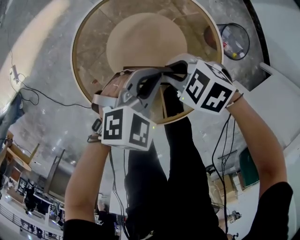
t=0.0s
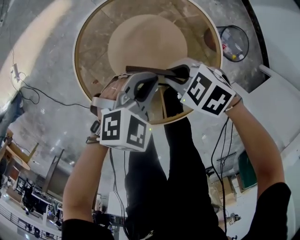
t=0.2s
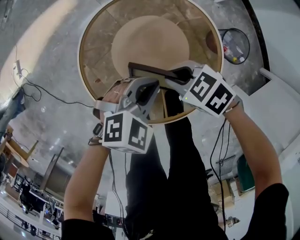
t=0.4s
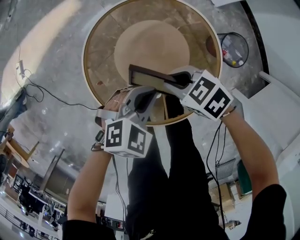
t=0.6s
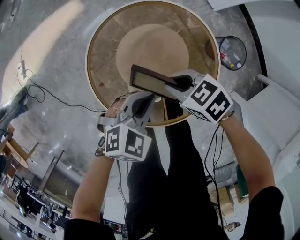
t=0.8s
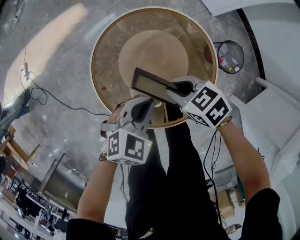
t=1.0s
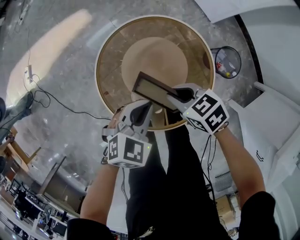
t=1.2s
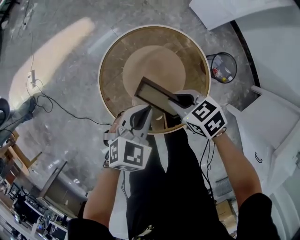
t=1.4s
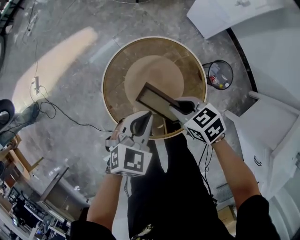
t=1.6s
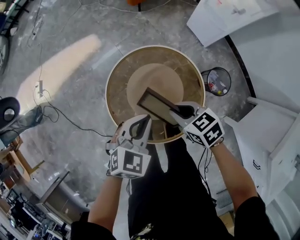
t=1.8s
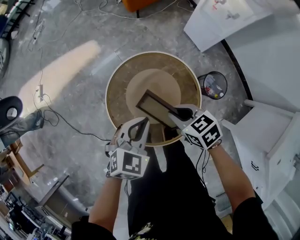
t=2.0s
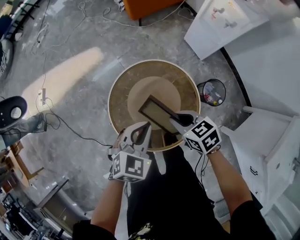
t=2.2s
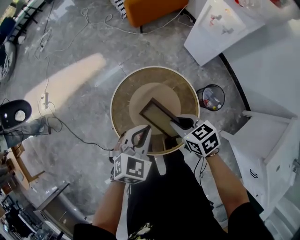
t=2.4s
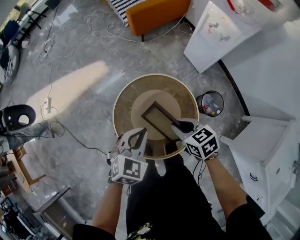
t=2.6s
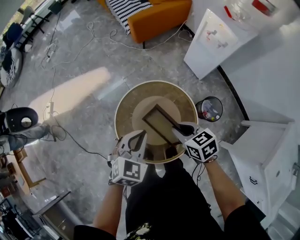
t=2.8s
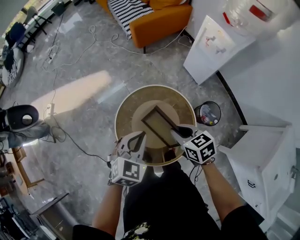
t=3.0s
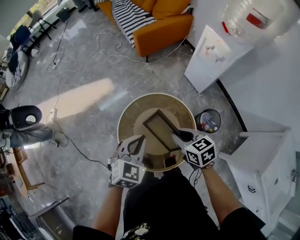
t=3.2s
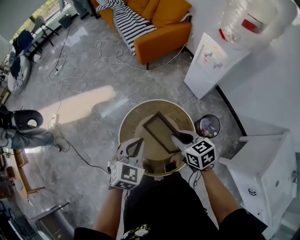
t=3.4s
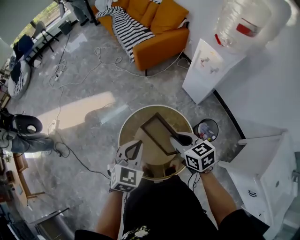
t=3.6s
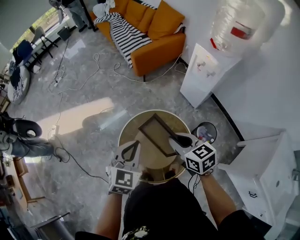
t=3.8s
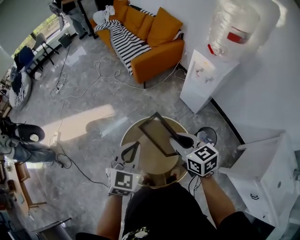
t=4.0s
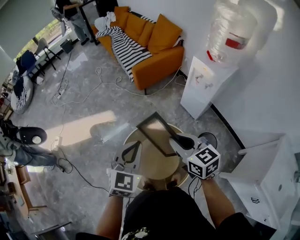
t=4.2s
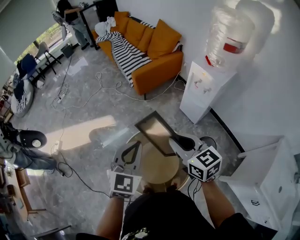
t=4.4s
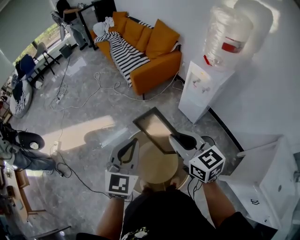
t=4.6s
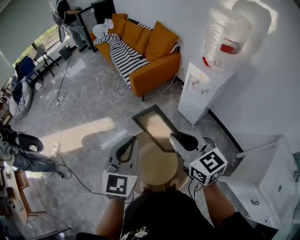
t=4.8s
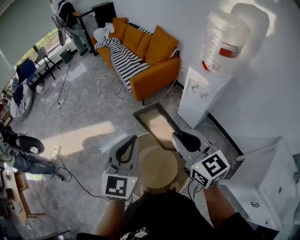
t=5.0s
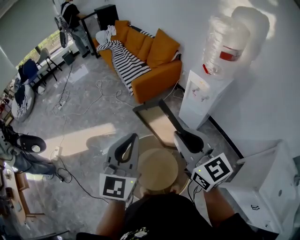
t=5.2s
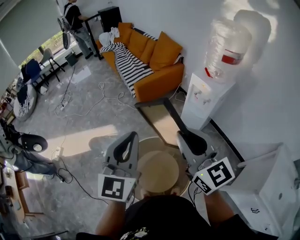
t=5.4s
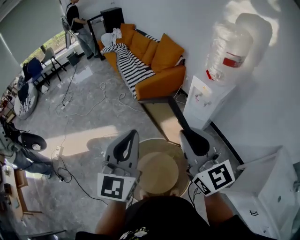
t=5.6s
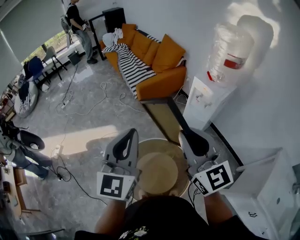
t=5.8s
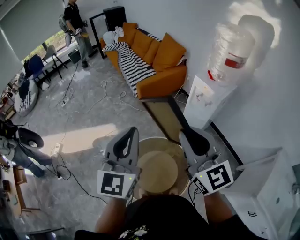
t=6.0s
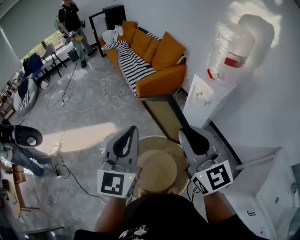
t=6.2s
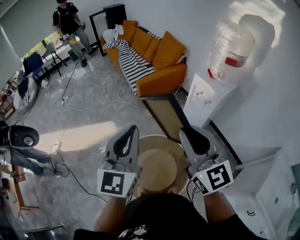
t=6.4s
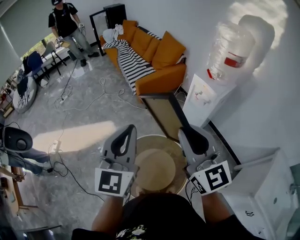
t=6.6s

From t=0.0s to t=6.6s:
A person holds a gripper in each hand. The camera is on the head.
From t=0.0s to t=1.6s: Both grippers travel together upward, about 20 cm. The left gripper swivels approximately 20 degrees. The right gripper swivels approximately 30 degrees.
From t=1.6s to t=3.2s: Both grippers travel together upward, roughly 20 cm.
From t=3.2s to t=5.0s: Both grippers travel together upward, about 25 cm. The left gripper tips its fingers upward by some 30 degrees; the right gripper tilts its fingers some 30 degrees upward.
From t=5.0s to t=6.6s: Both grippers move upward, approximately 5 cm.

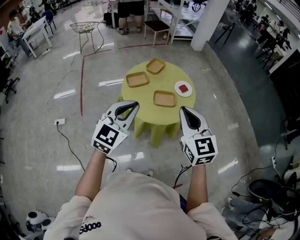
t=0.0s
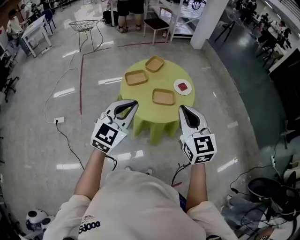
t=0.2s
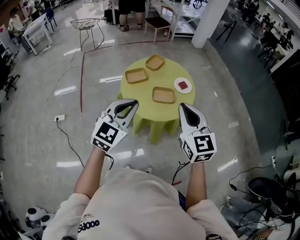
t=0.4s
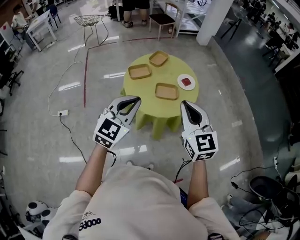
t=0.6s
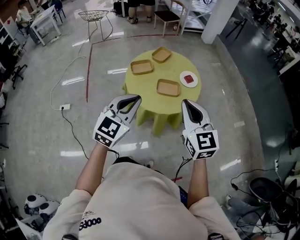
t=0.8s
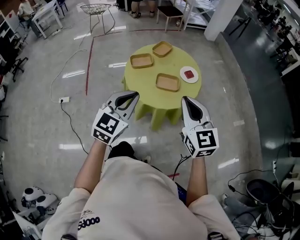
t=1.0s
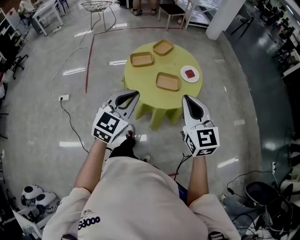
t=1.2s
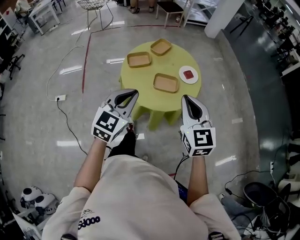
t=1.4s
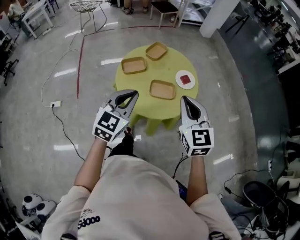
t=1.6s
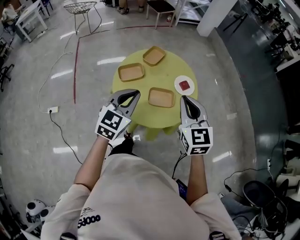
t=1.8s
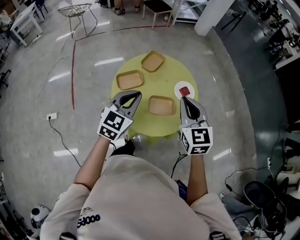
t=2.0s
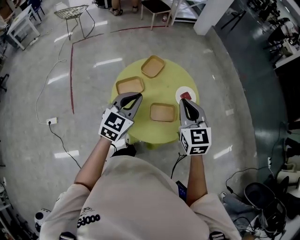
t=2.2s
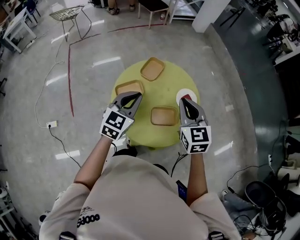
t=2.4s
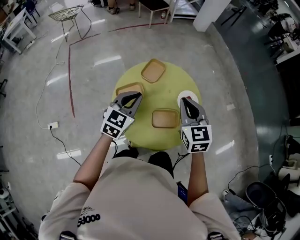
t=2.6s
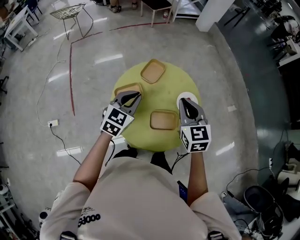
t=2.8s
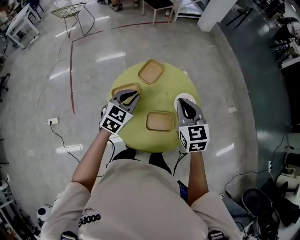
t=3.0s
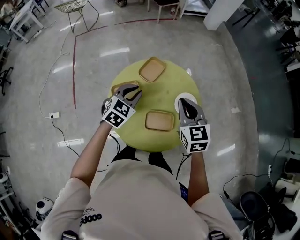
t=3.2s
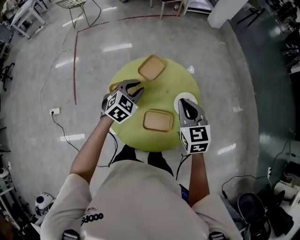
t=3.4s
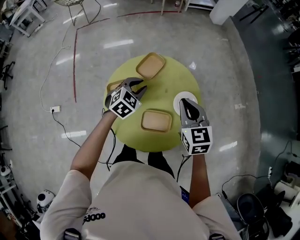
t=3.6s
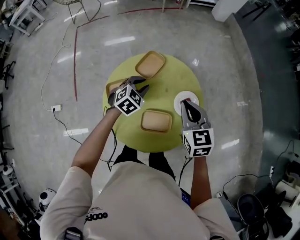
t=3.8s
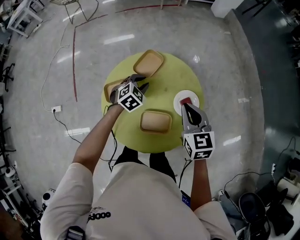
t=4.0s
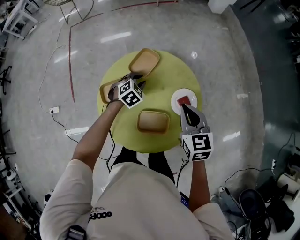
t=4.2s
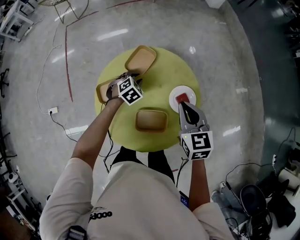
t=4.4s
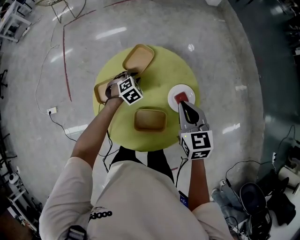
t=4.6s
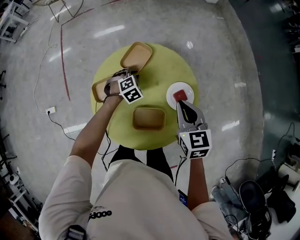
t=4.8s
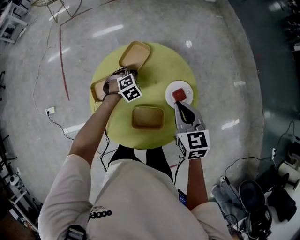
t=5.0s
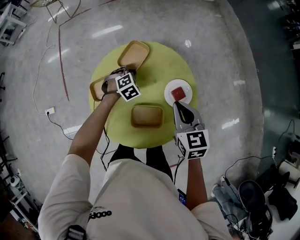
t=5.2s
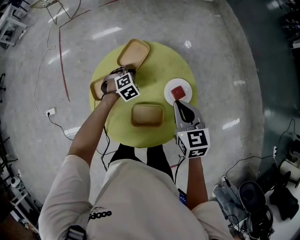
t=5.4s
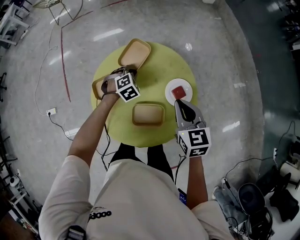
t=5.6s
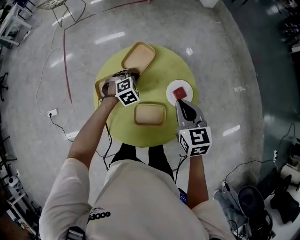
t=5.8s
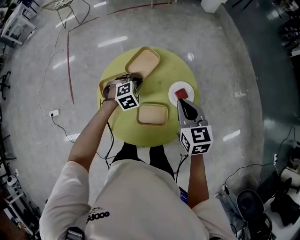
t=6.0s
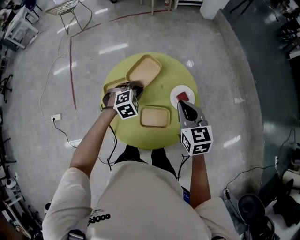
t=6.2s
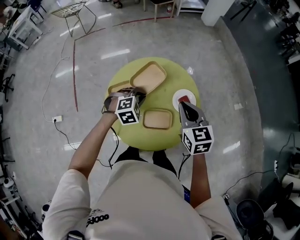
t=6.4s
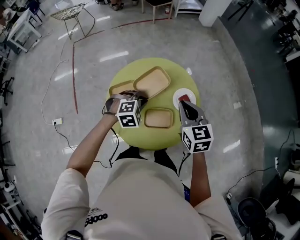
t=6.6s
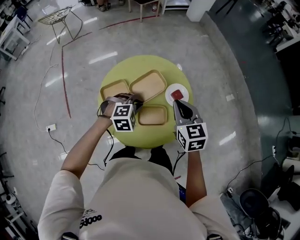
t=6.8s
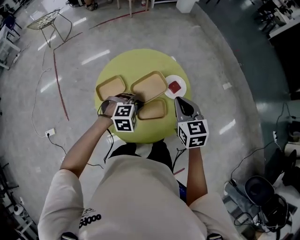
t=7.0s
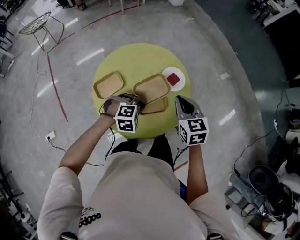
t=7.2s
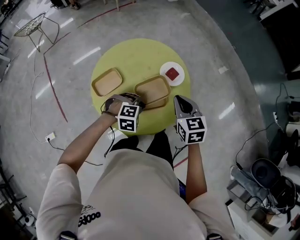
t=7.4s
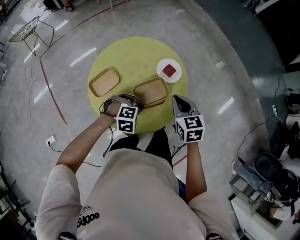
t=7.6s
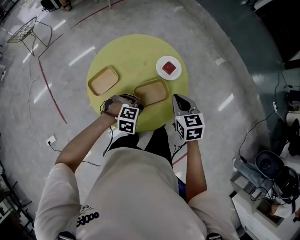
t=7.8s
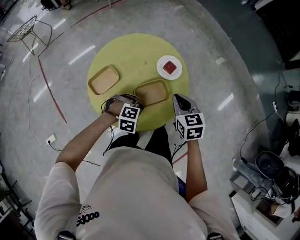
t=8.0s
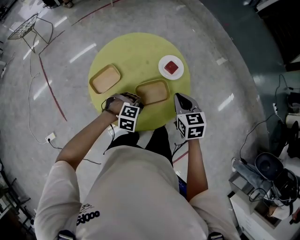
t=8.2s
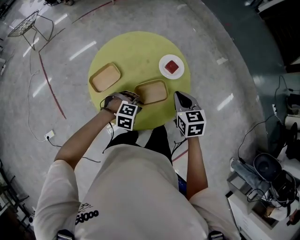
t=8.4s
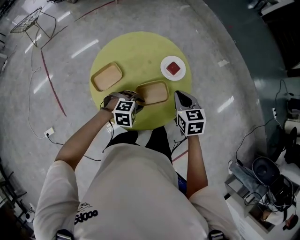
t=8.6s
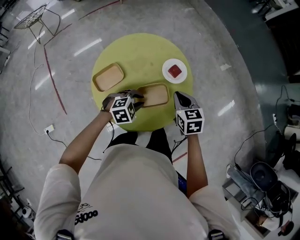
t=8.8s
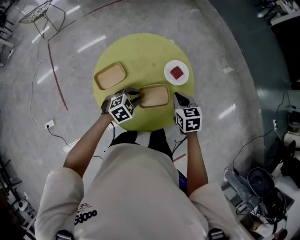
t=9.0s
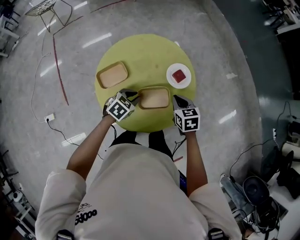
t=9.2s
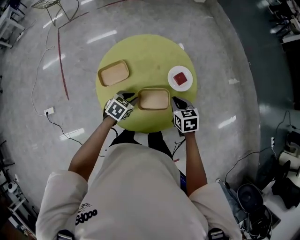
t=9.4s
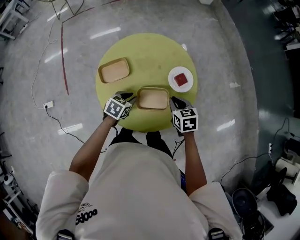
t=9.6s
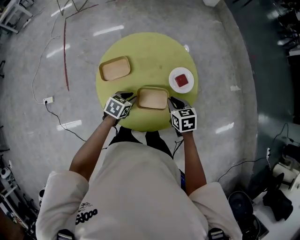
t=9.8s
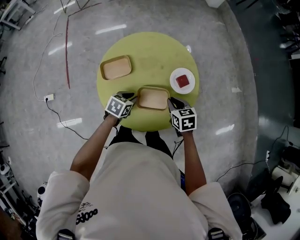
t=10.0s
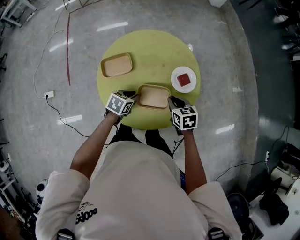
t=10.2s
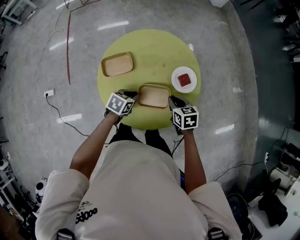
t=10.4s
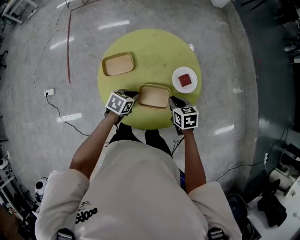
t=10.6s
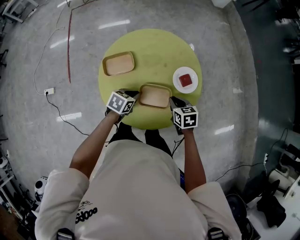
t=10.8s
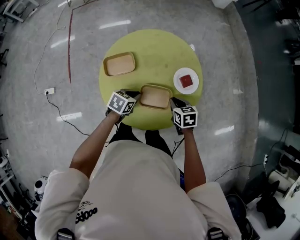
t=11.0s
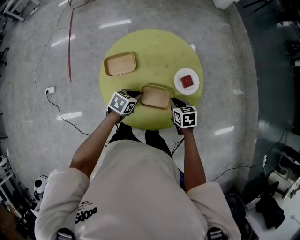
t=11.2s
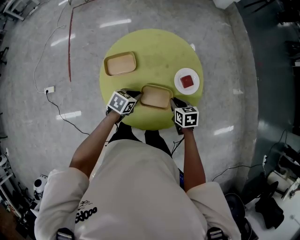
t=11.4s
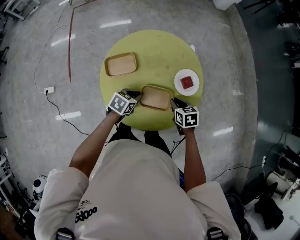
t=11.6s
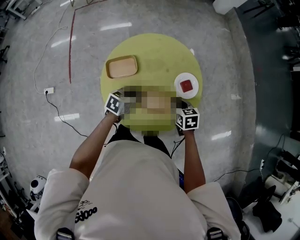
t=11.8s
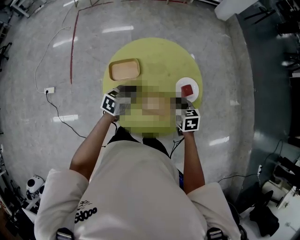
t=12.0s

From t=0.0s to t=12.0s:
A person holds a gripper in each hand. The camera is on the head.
From t=0.0s to t=1.6s: Both grippers move forward and downward, roughly 10 cm.
From t=1.6s to t=3.0s: The grippers both shift forward by approximately 25 cm.
From t=3.0s to t=4.4s: The left gripper is displaced downward and forward by approximately 25 cm, and angles its fingers downward, by roughly 30 degrees. Meanwhile the right gripper travels downward and to the right by about 10 cm.
From t=4.4s to t=6.0s: The left gripper is displaced upward and backward by roughly 10 cm.
From t=6.0s to t=7.6s: The left gripper reaches some 5 cm upward, then returns, and turns by approximately 50 degrees. Meanwhile the right gripper shifts by some 10 cm.
From t=7.6s to t=9.0s: The right gripper heads downward, covering approximately 5 cm; the left gripper shifts by approximately 5 cm, and changes its angle by approximately 40 degrees.
From t=9.0s to t=10.4s: The right gripper heads downward, covering roughly 5 cm; the left gripper changes place by approximately 5 cm, and rotates around the line of its fingers by approximately 50 degrees, counterclockwise from behind.
From t=10.4s to t=12.0s: The left gripper is displaced upward by roughly 5 cm. The right gripper shifts by some 5 cm.

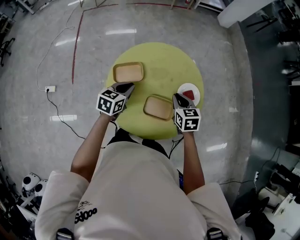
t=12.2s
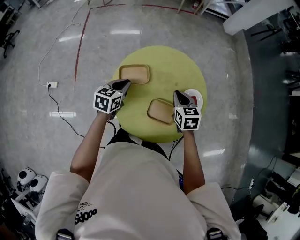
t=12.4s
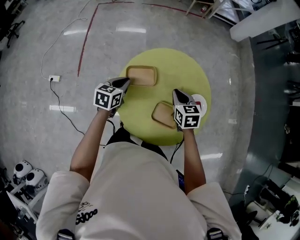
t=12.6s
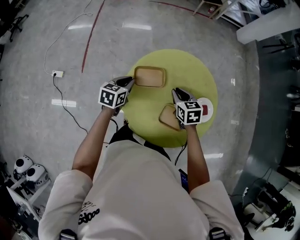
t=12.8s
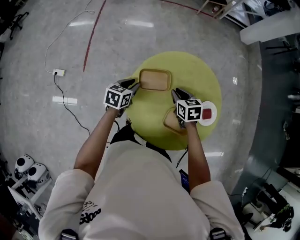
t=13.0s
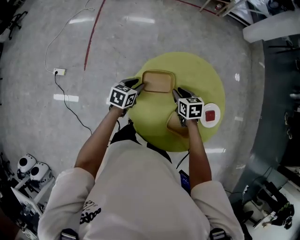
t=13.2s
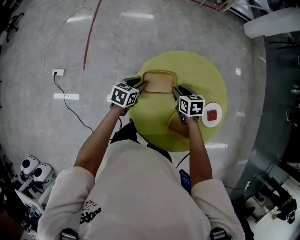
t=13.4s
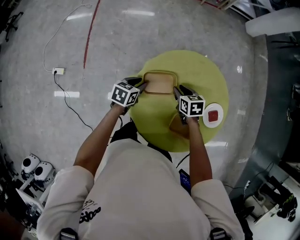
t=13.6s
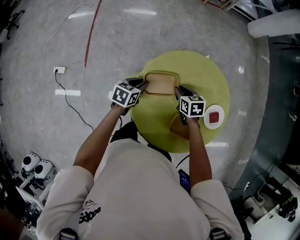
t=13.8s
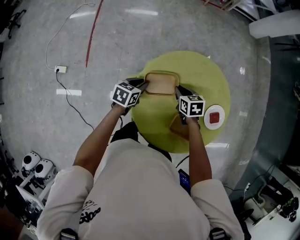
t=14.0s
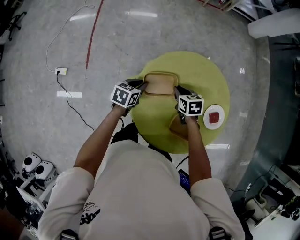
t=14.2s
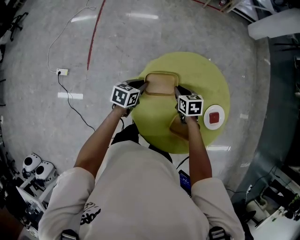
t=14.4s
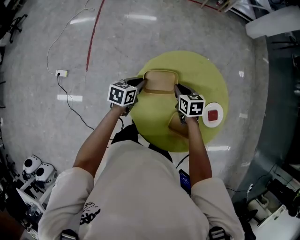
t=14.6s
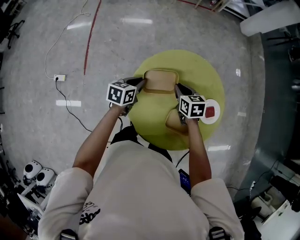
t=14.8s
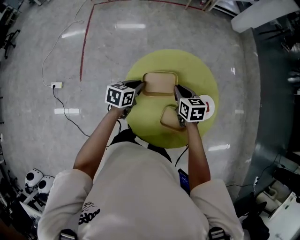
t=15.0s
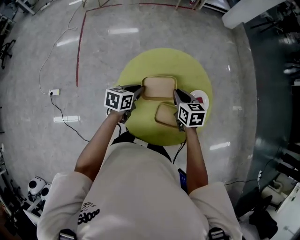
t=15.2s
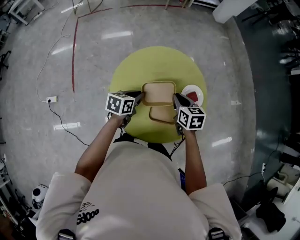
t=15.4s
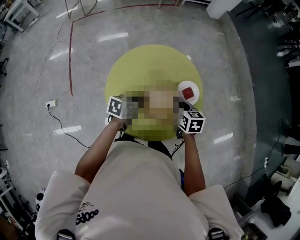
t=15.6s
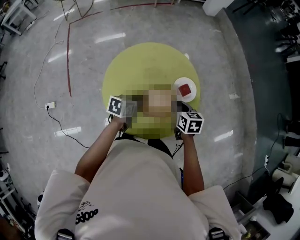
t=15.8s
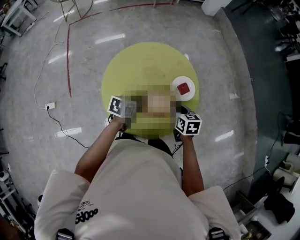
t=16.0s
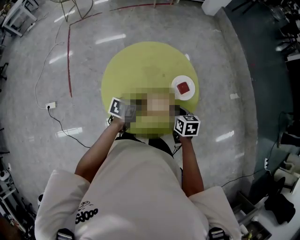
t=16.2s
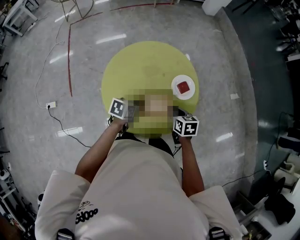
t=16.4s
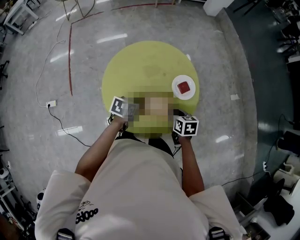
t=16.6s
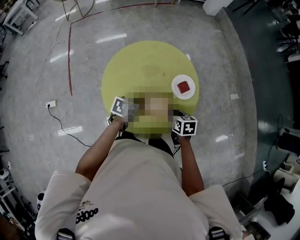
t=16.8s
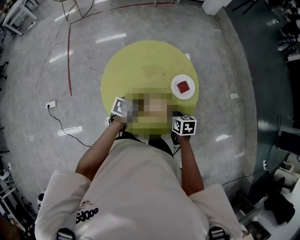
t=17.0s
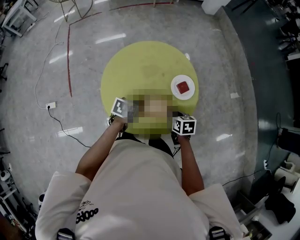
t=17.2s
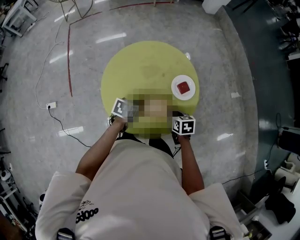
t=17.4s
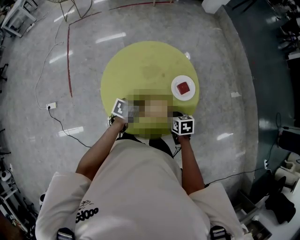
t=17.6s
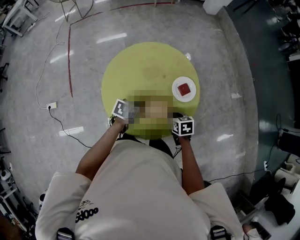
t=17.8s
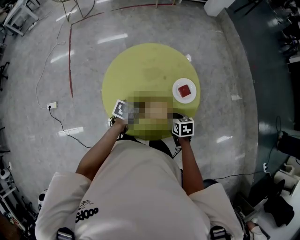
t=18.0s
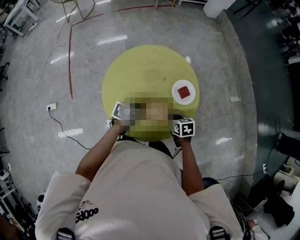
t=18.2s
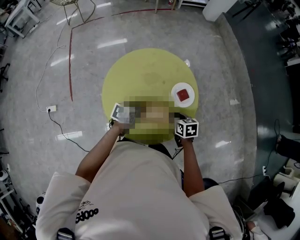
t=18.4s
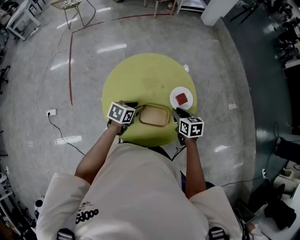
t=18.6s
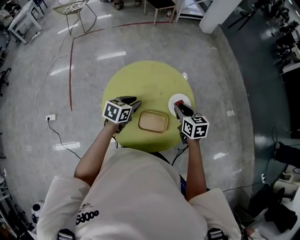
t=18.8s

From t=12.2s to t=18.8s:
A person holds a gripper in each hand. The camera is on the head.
From t=12.2s to t=13.8s: The right gripper heads to the left, forward and downward, covering some 20 cm, while the left gripper is displaced to the left, downward and forward by approximately 15 cm.
From t=13.8s to t=15.4s: Both grippers travel together to the right, upward and backward, about 15 cm. The right gripper changes its angle by roughly 20 degrees.
From t=15.4s to t=17.2s: The right gripper moves backward, to the right and downward, some 15 cm. Meanwhile the left gripper is displaced to the right and downward by roughly 10 cm.
From t=17.2s to t=18.8s: Both grippers travel together upward and forward, about 15 cm. The right gripper turns by roughly 20 degrees.
